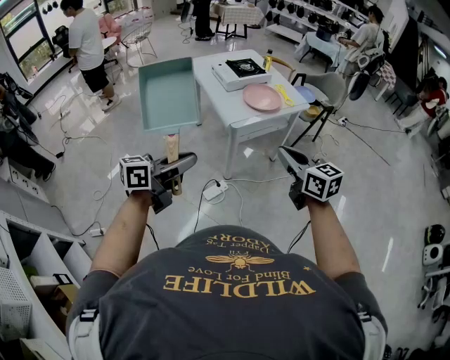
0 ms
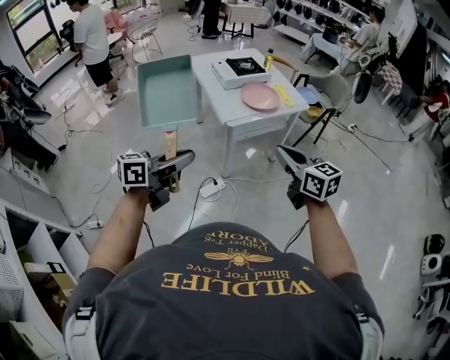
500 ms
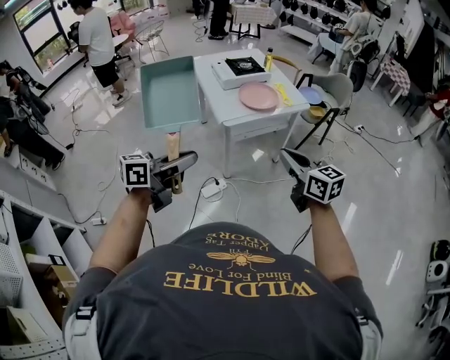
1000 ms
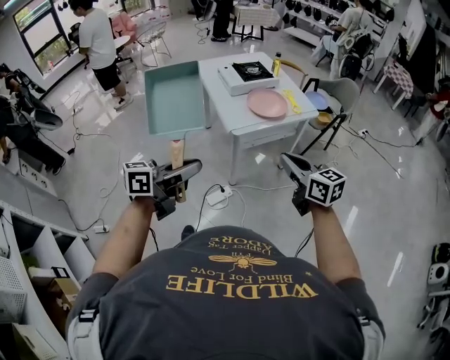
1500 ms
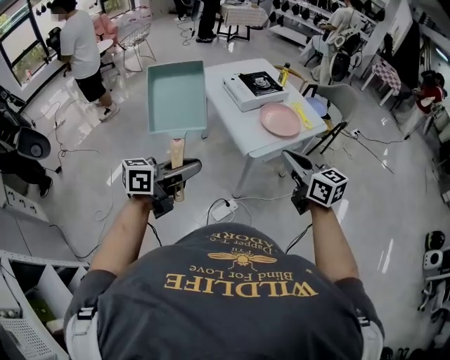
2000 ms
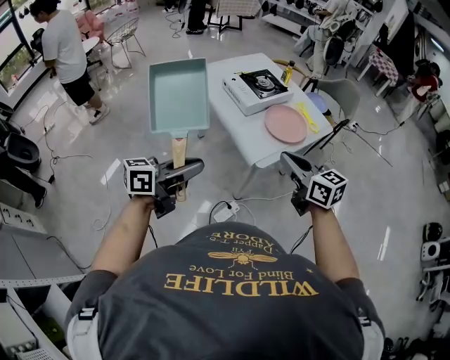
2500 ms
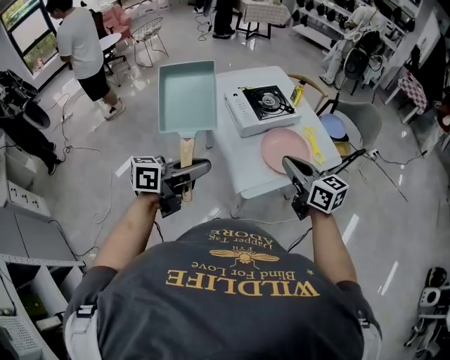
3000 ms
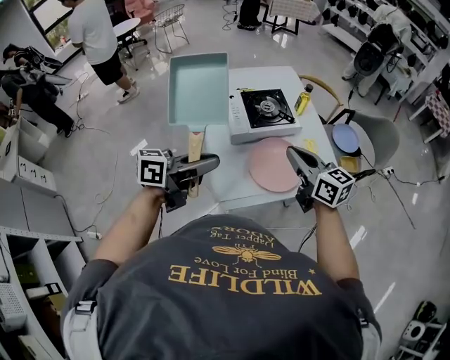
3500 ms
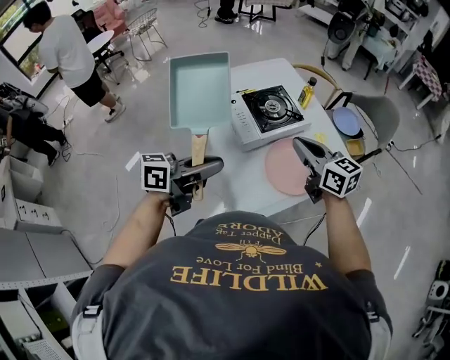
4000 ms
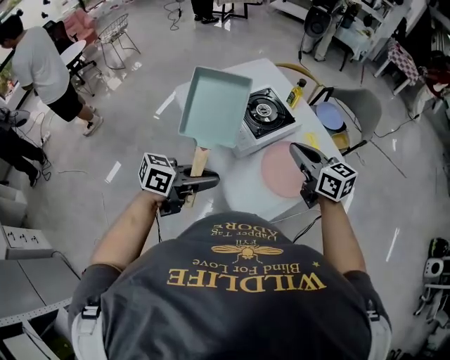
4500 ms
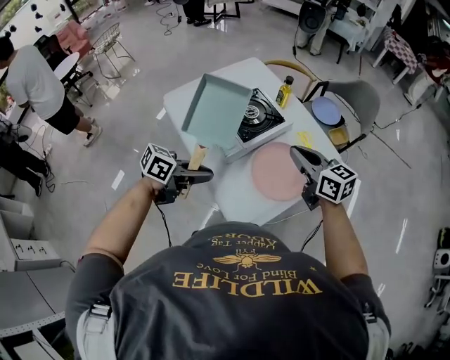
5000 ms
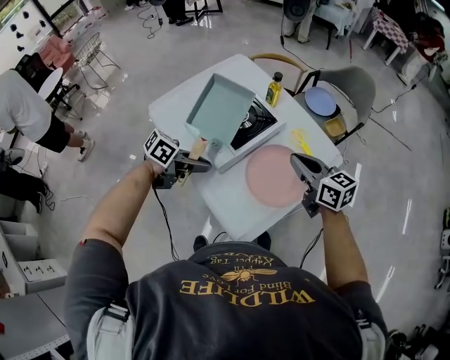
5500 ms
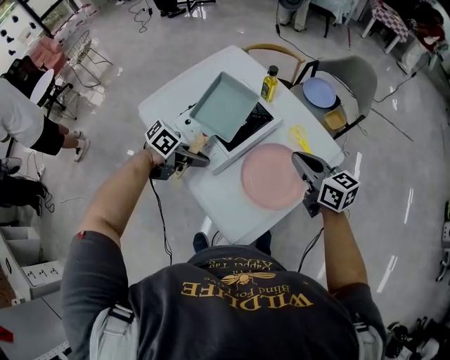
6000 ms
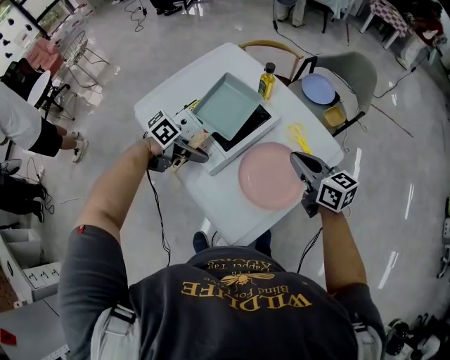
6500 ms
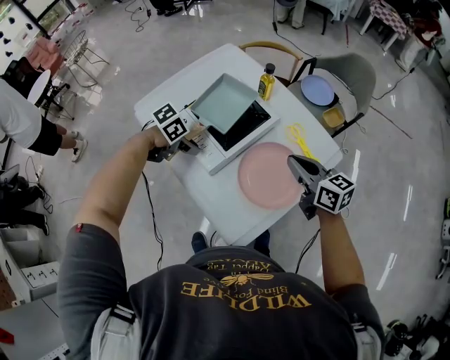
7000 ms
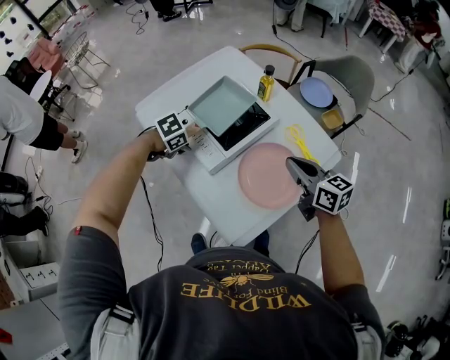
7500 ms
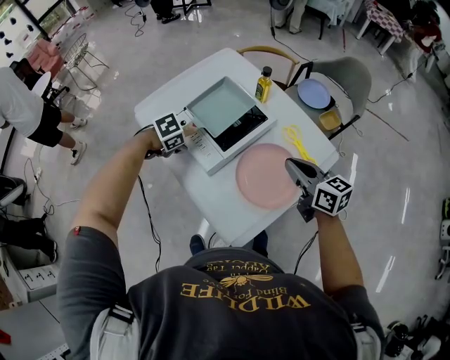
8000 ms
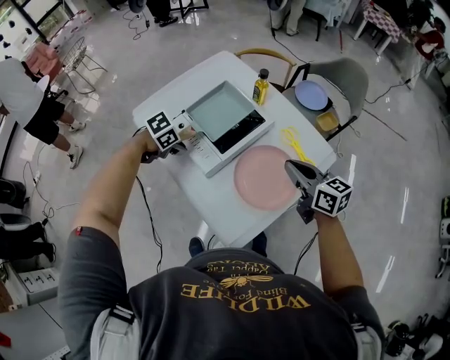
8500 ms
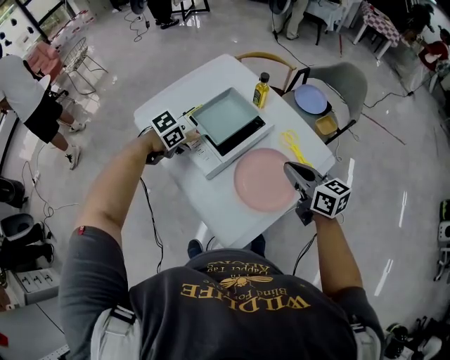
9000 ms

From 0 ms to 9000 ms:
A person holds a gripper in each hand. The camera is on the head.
From 0 ms to 2000 ms: The two grippers go approximately 20 cm forward and to the left.
From 2000 ms to 4500 ms: The two grippers travel together, forward, about 50 cm. The left gripper turns by roughly 20 degrees.
From 4500 ms to 7000 ms: The right gripper moves roughly 15 cm. The left gripper moves some 30 cm, and angles its fingers downward, by some 40 degrees.

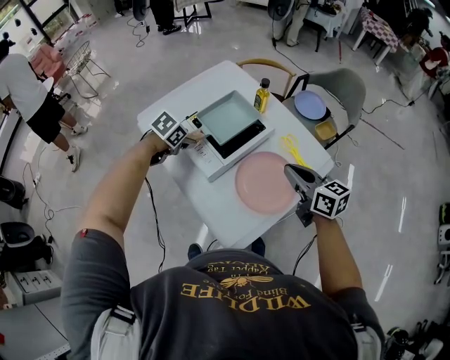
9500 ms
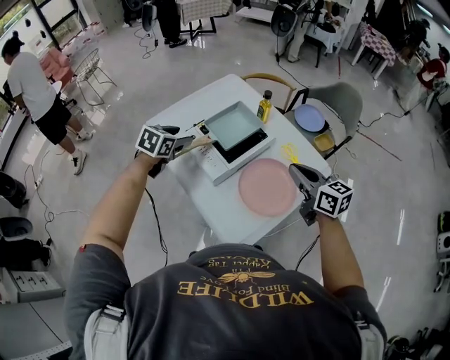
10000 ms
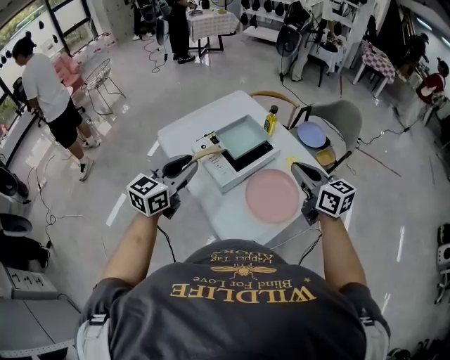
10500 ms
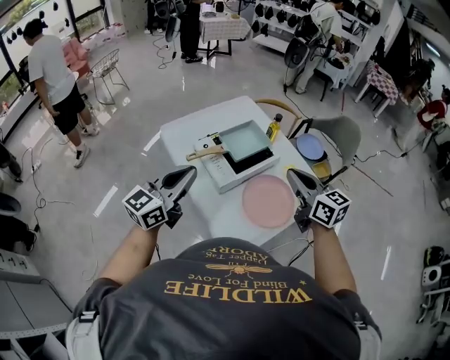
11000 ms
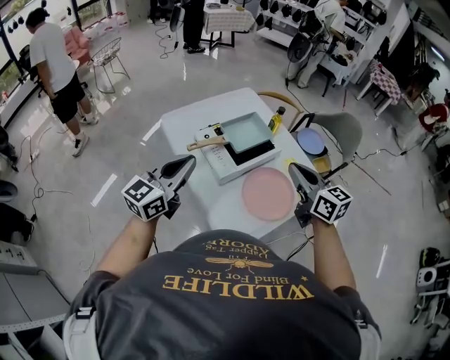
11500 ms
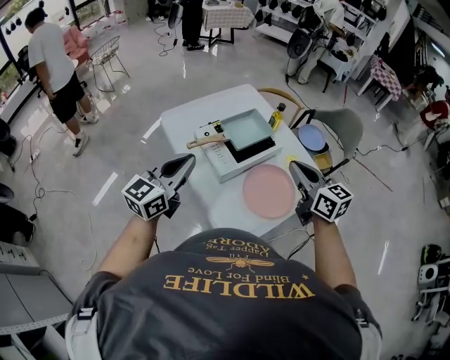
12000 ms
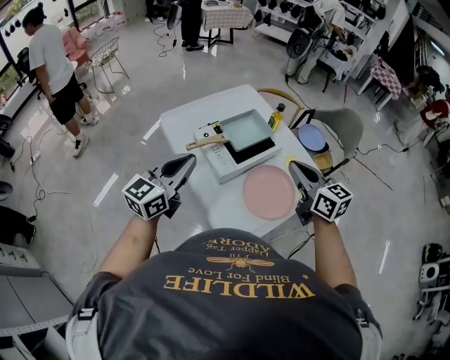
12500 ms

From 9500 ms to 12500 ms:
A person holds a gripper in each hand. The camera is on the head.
From 9500 ms to 11000 ms: The right gripper goes some 15 cm upward and to the left, while the left gripper is displaced upward and backward by about 30 cm, angles its fingers upward, by approximately 70 degrees, and closes.
From 11000 ms to 12500 ms: The grippers stay close to where they were, moving slightly.

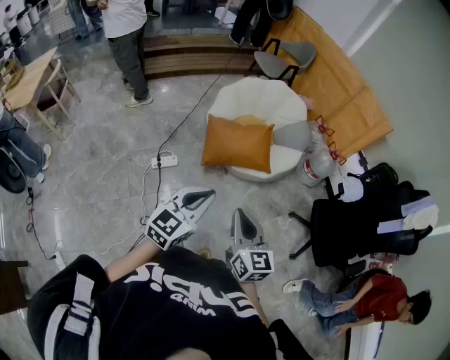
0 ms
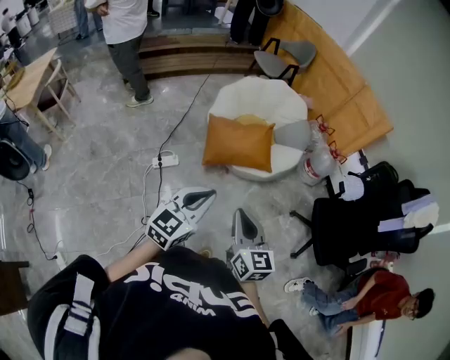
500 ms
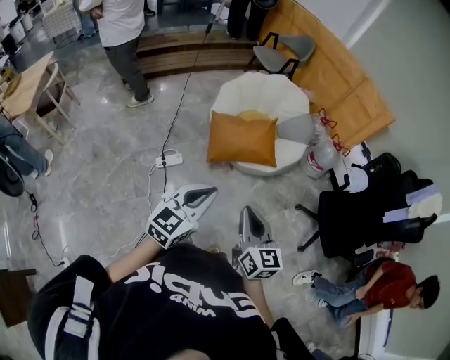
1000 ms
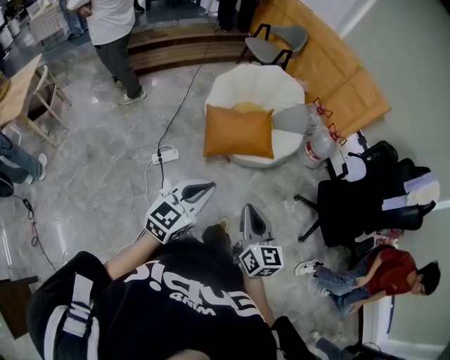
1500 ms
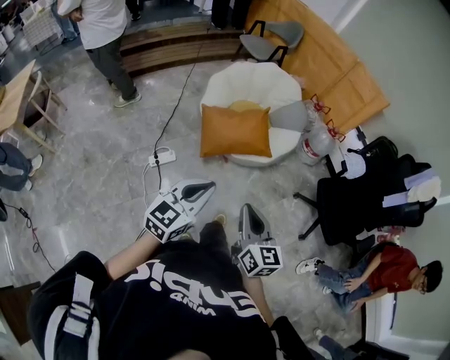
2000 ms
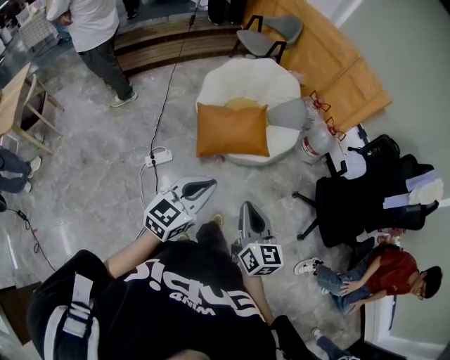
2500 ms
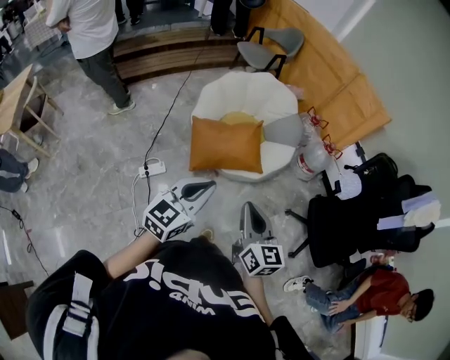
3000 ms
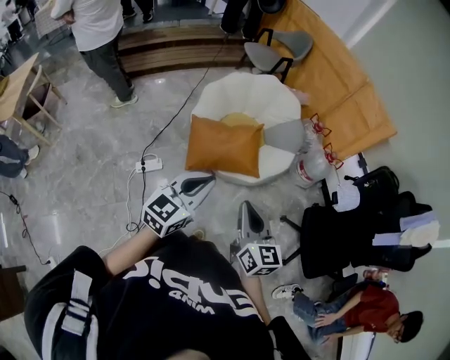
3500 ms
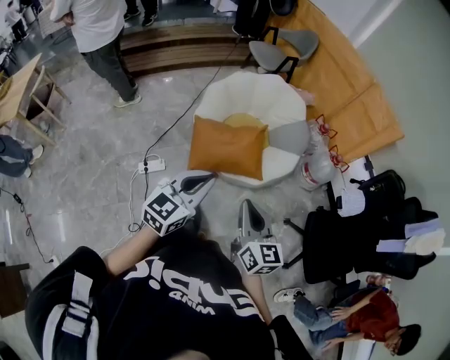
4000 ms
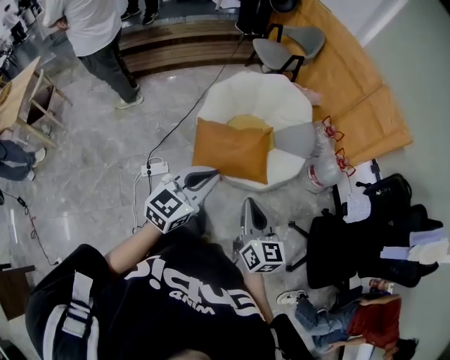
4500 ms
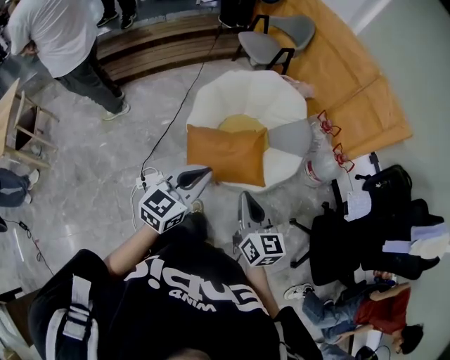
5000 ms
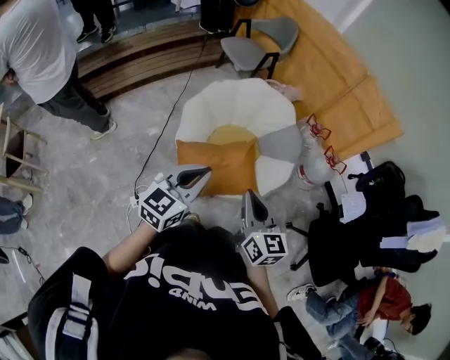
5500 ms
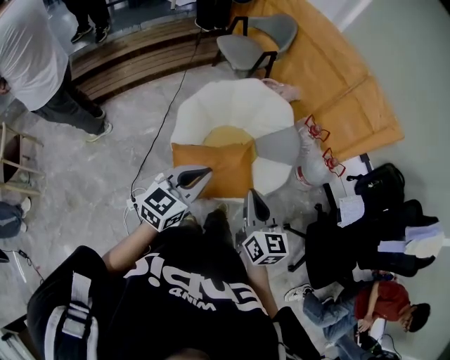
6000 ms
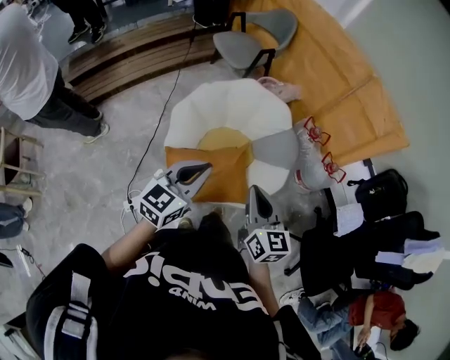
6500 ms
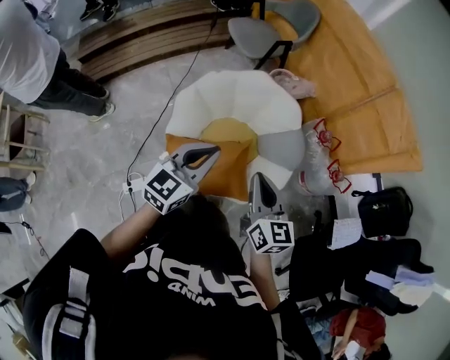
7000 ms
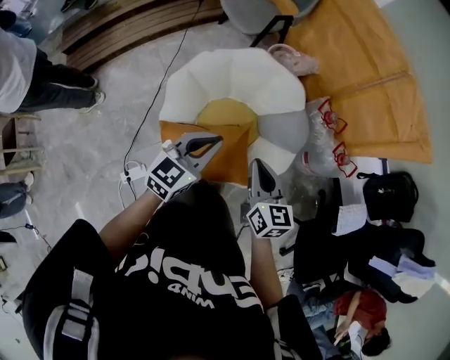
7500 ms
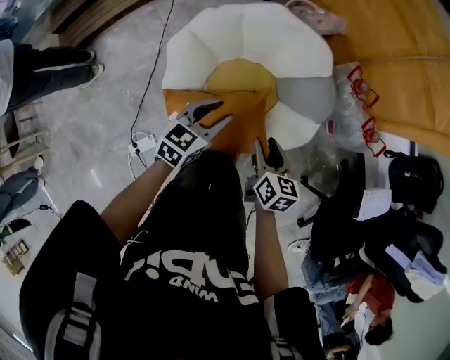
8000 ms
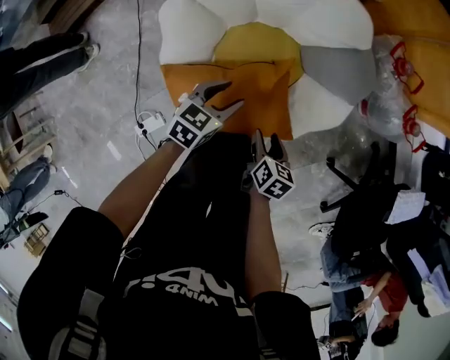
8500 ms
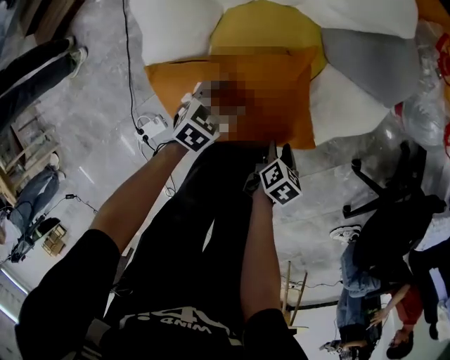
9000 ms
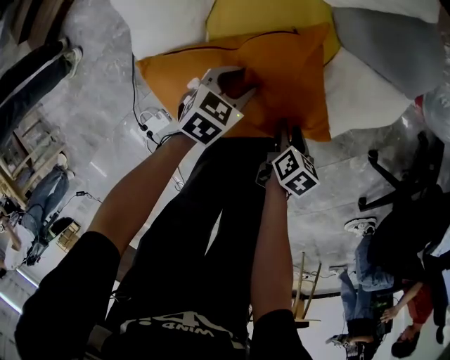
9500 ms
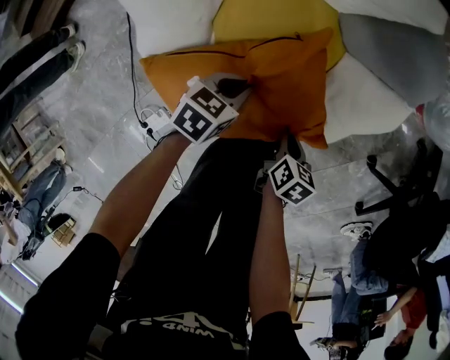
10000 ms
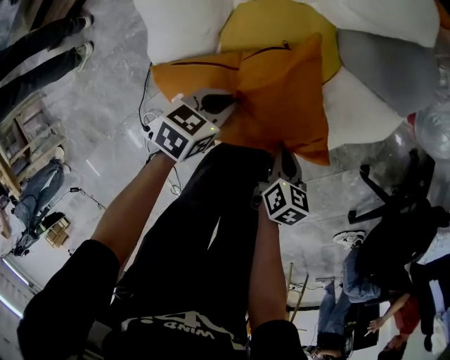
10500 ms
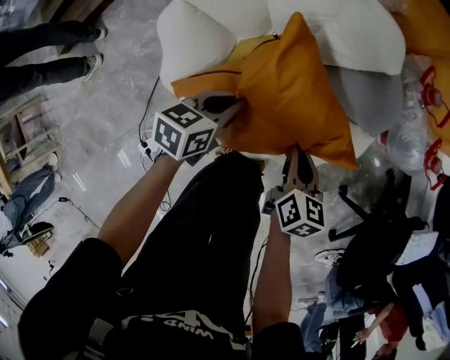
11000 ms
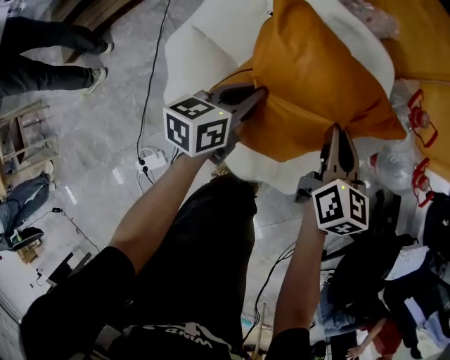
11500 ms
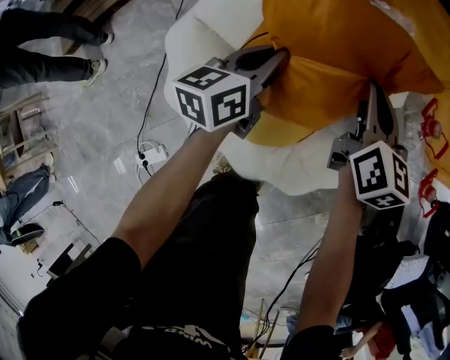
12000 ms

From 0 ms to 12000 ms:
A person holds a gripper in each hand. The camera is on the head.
From 0 ms to 2000 ms: The grippers make only small movements.
From 2000 ms to 4000 ms: Both grippers travel together forward and to the right, about 25 cm.
From 4000 ms to 6000 ms: The grippers both shift forward by some 30 cm.
From 6000 ms to 8000 ms: The right gripper heads downward and forward, covering some 35 cm, changes its angle by roughly 30 degrees, and opens up. The left gripper is displaced forward and downward by about 40 cm, rotates roughly 20 degrees, and opens up.
From 8000 ms to 10000 ms: Both grippers move downward, some 40 cm. The right gripper rotates some 30 degrees, and closes. Meanwhile the left gripper changes its angle by about 30 degrees, and closes.
From 10000 ms to 12000 ms: Both grippers travel together forward and upward, roughly 40 cm. The left gripper tilts its fingers roughly 40 degrees upward, while the right gripper tilts its fingers roughly 40 degrees upward.

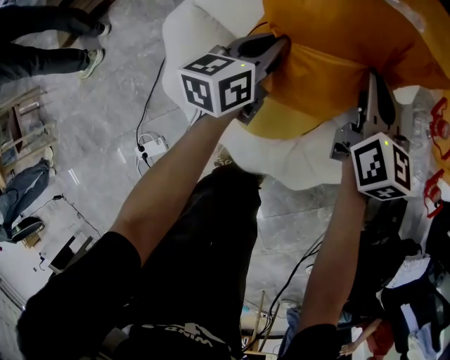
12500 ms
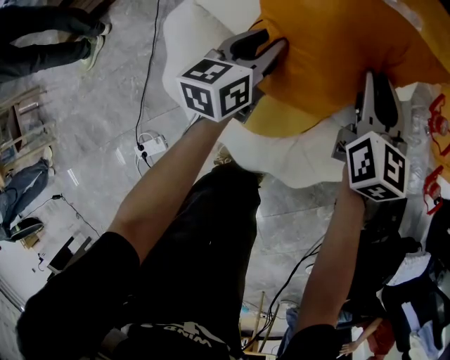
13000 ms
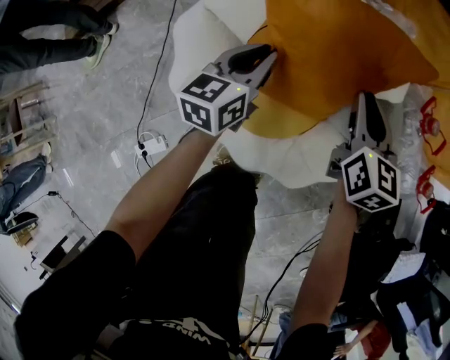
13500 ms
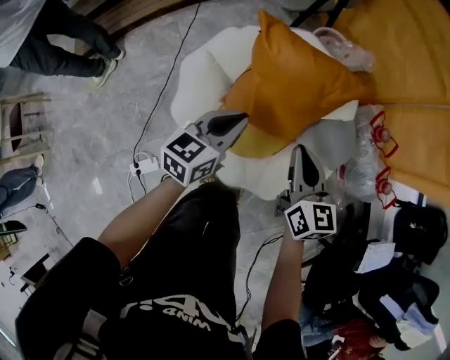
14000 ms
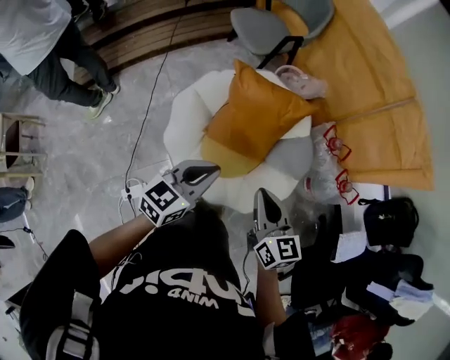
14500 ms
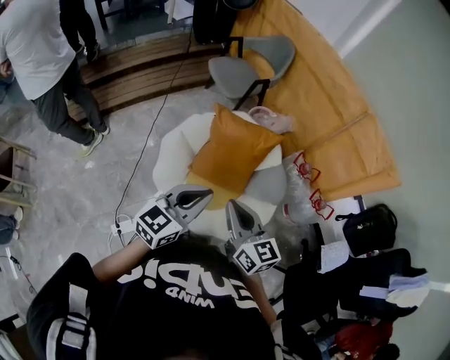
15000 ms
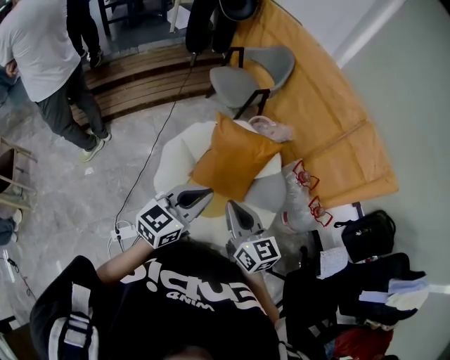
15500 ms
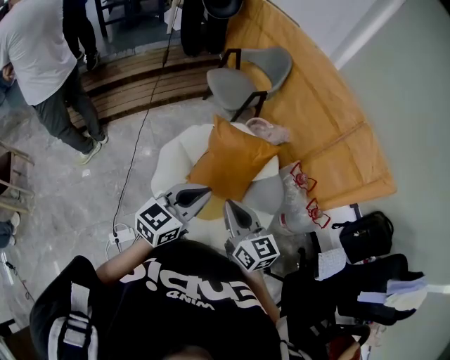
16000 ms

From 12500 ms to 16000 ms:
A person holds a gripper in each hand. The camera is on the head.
From 12500 ms to 14500 ms: The right gripper heads backward and upward, covering roughly 40 cm, while the left gripper travels upward and backward by approximately 50 cm, turns by some 20 degrees, and opens, then closes once more.
From 14500 ms to 16000 ms: The left gripper is displaced upward by some 15 cm; the right gripper heads upward and to the left, covering some 10 cm.
